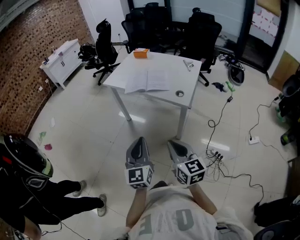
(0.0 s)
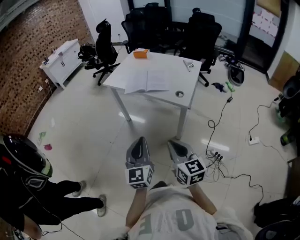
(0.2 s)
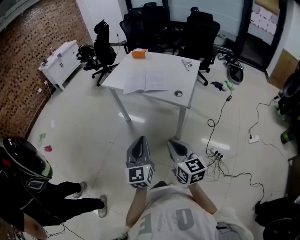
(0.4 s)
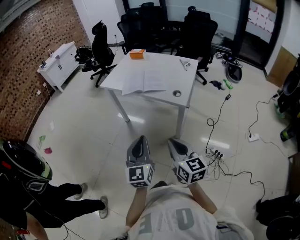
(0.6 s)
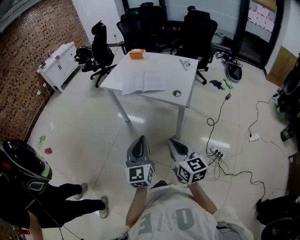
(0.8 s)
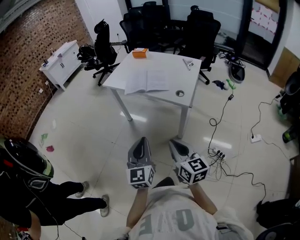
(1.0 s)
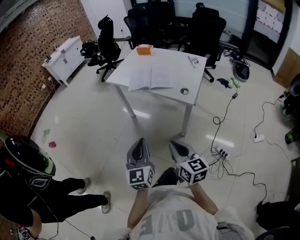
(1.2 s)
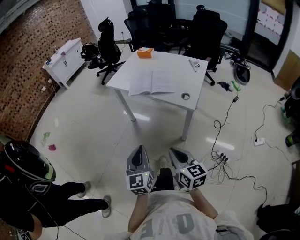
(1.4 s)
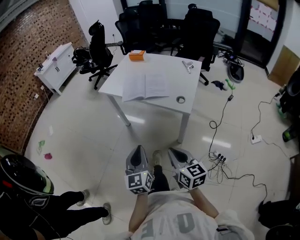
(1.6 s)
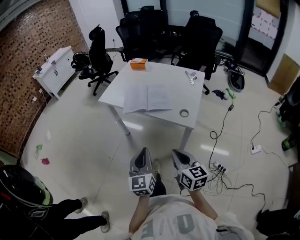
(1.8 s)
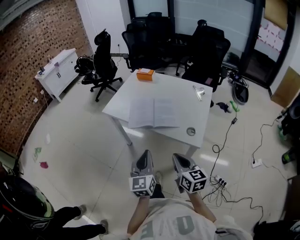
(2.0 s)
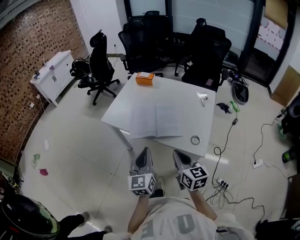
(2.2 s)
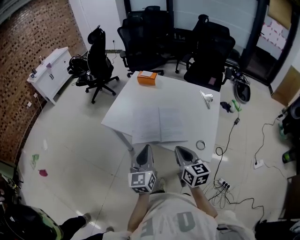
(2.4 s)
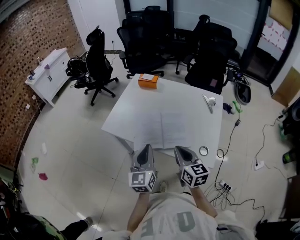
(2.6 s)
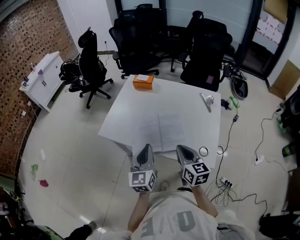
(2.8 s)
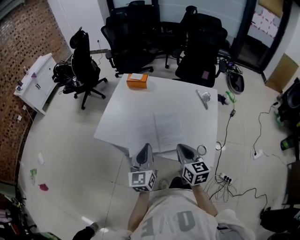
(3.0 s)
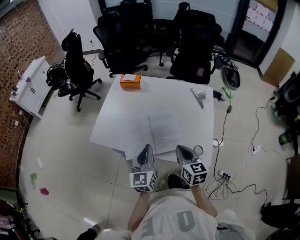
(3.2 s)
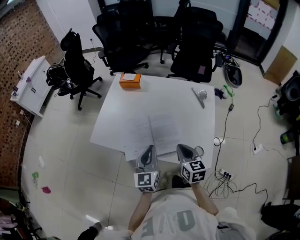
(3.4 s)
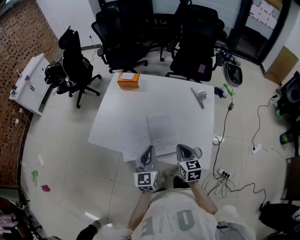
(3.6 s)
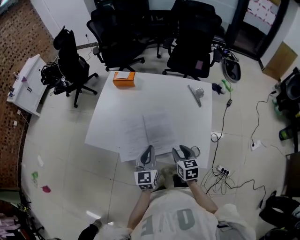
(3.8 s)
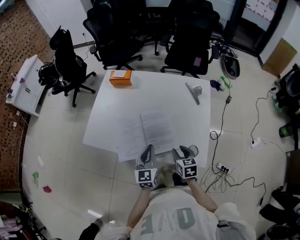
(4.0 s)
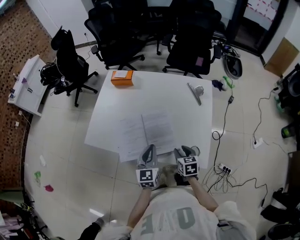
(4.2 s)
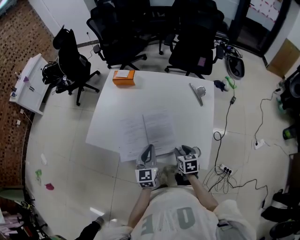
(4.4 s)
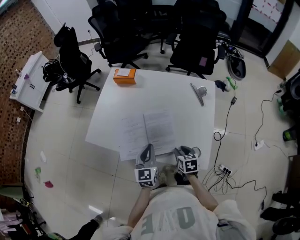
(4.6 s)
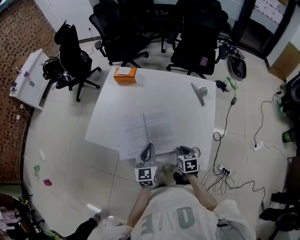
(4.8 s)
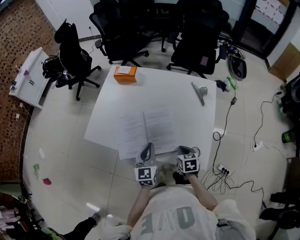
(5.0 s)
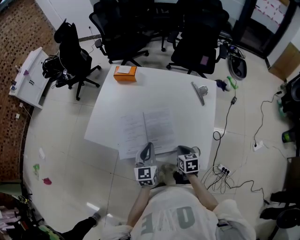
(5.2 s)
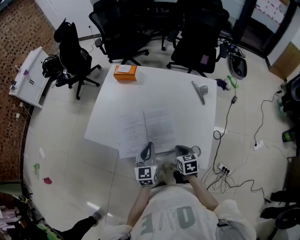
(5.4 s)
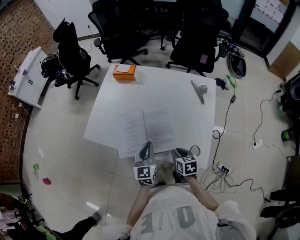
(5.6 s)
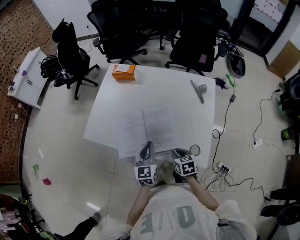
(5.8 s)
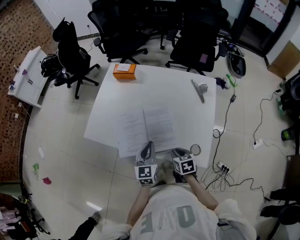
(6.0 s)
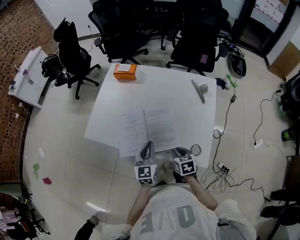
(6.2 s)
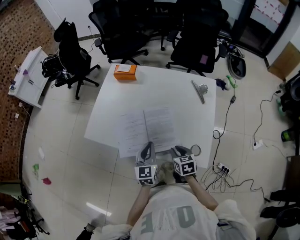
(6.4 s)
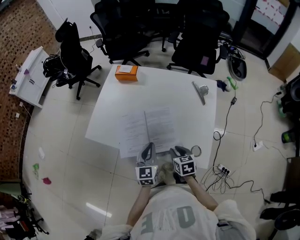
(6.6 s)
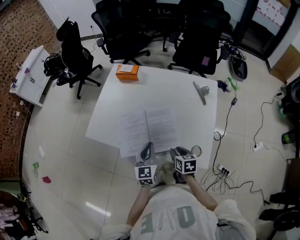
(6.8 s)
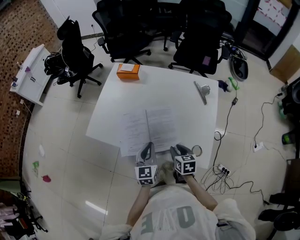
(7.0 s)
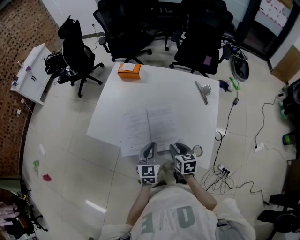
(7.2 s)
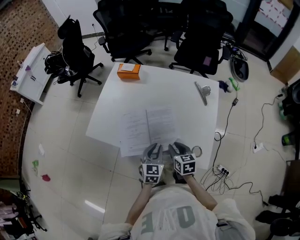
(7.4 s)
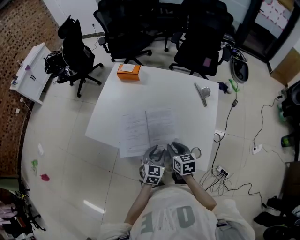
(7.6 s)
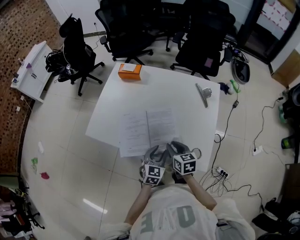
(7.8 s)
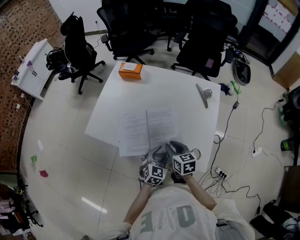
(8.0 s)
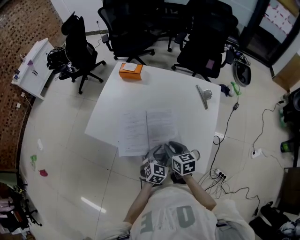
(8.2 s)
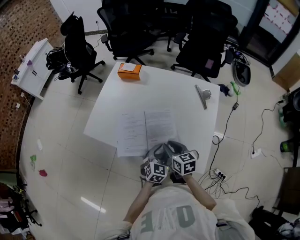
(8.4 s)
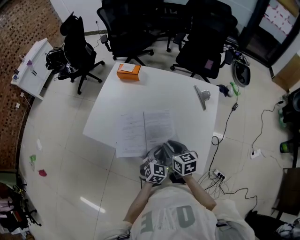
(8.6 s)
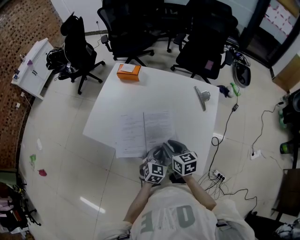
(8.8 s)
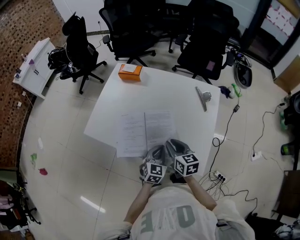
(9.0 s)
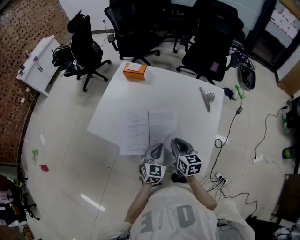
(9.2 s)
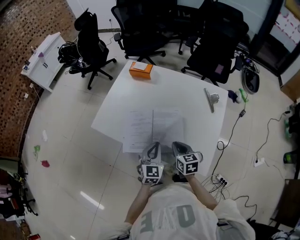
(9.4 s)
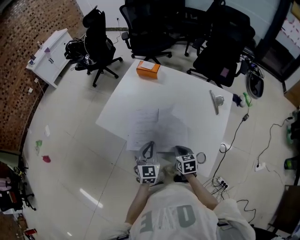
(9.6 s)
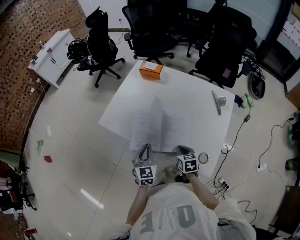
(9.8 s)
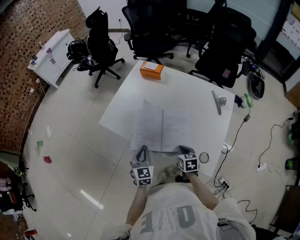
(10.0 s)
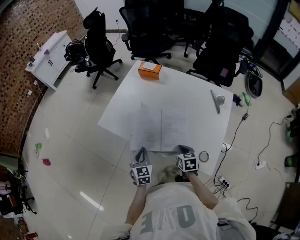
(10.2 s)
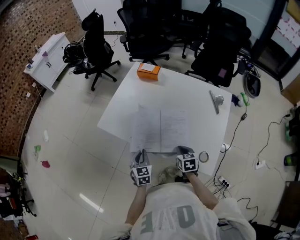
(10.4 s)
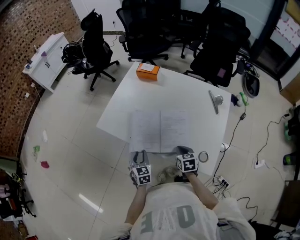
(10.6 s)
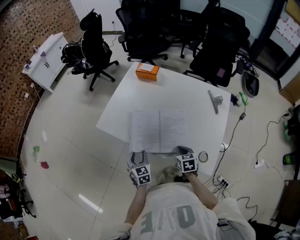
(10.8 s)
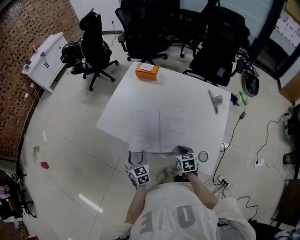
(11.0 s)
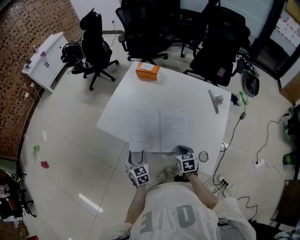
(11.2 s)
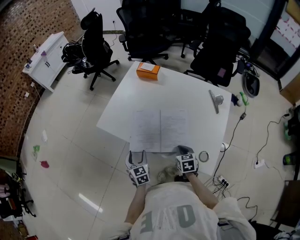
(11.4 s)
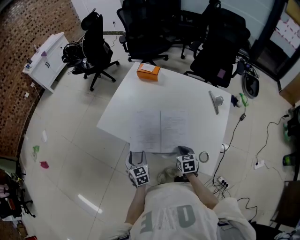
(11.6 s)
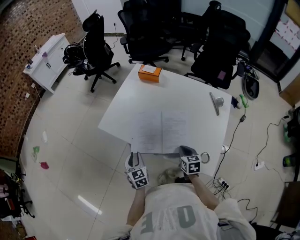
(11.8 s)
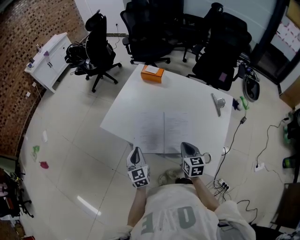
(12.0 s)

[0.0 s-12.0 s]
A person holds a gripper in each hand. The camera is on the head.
0.0 to 1.6 s: The grippers both shift forward by about 5 cm.
1.6 to 3.0 s: Both grippers move forward, about 40 cm.
3.0 to 4.4 s: The right gripper goes about 20 cm downward and to the right, changes its angle by some 30 degrees, and opens up, while the left gripper goes roughly 10 cm downward and to the right.
4.4 to 6.0 s: The right gripper closes and opens again.
6.0 to 7.6 s: The left gripper moves downward, approximately 5 cm, and opens its fingers; the right gripper shifts roughly 5 cm upward.
7.6 to 9.0 s: The left gripper closes, while the right gripper shifts by some 5 cm.
9.0 to 10.4 s: The right gripper goes about 10 cm downward, rotates some 20 degrees, and closes up, while the left gripper is displaced to the left by about 20 cm, and swivels about 30 degrees.
10.4 to 12.0 s: The grippers both shift upward by approximately 5 cm. The left gripper opens, then closes once more.

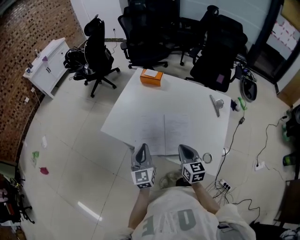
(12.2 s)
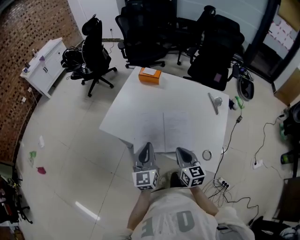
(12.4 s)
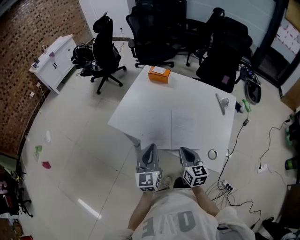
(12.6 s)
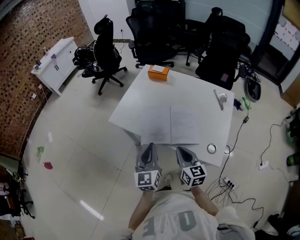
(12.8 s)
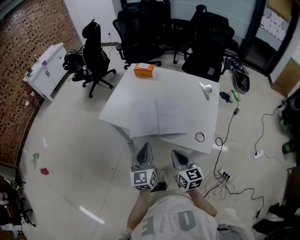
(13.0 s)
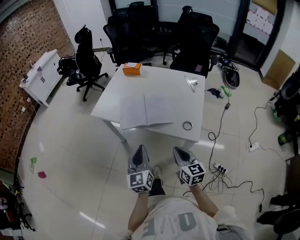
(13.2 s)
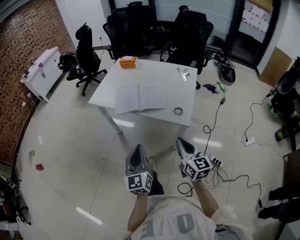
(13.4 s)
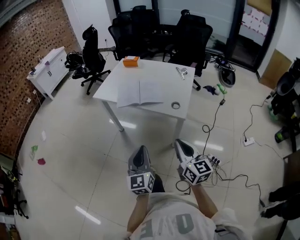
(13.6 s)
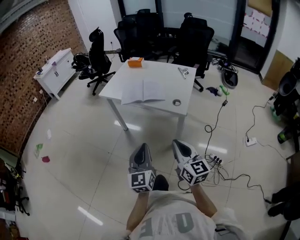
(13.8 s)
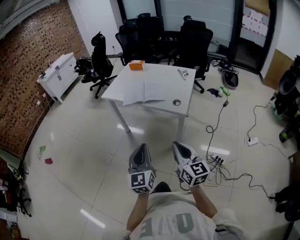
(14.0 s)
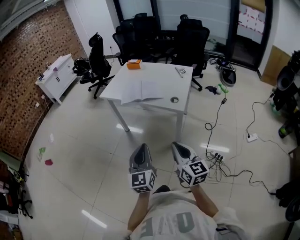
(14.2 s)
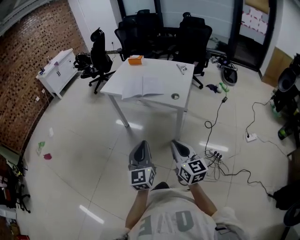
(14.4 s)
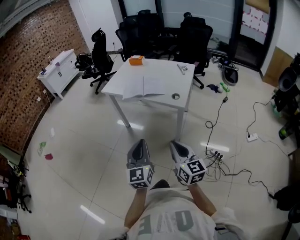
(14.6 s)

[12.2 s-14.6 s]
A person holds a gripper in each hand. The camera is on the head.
12.2 to 13.4 s: The two grippers go some 30 cm backward.
13.4 to 14.6 s: The two grippers go some 20 cm backward.

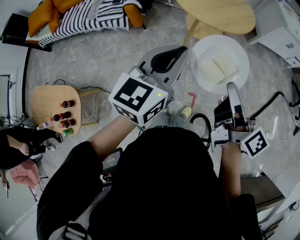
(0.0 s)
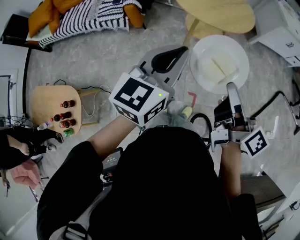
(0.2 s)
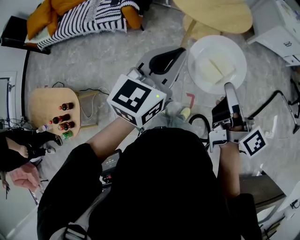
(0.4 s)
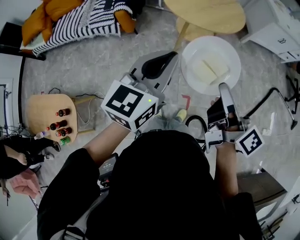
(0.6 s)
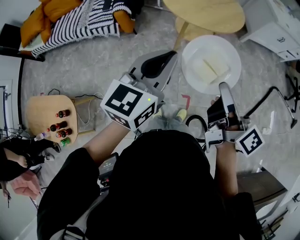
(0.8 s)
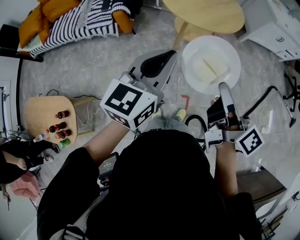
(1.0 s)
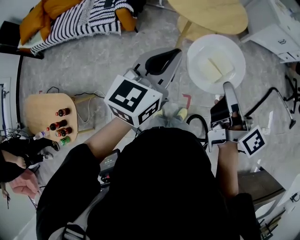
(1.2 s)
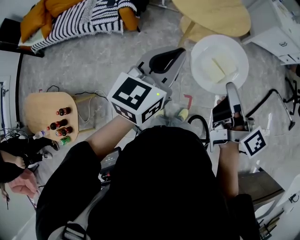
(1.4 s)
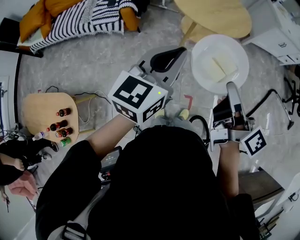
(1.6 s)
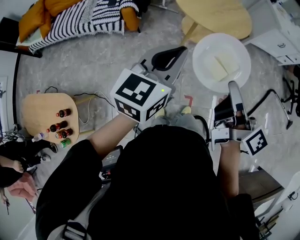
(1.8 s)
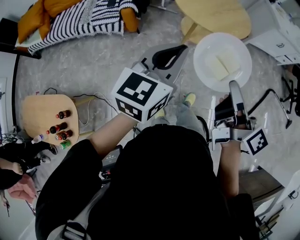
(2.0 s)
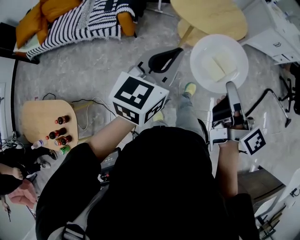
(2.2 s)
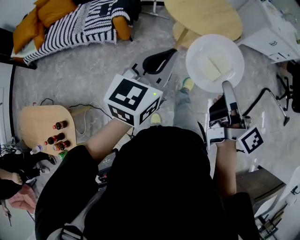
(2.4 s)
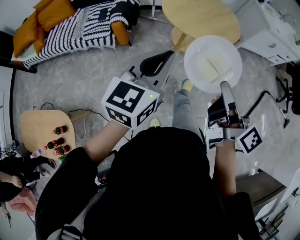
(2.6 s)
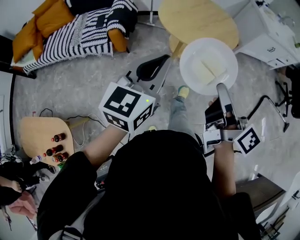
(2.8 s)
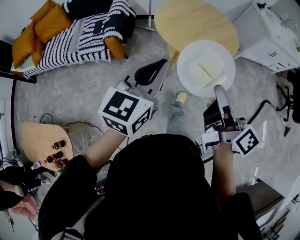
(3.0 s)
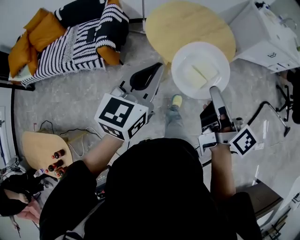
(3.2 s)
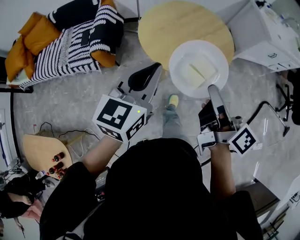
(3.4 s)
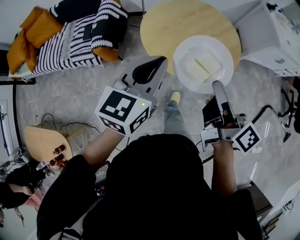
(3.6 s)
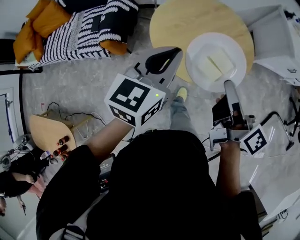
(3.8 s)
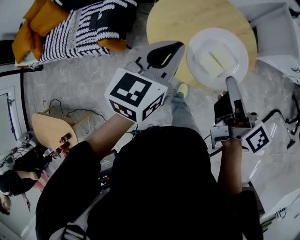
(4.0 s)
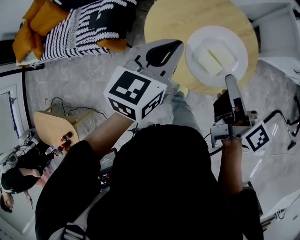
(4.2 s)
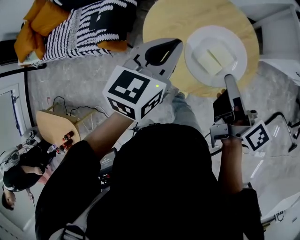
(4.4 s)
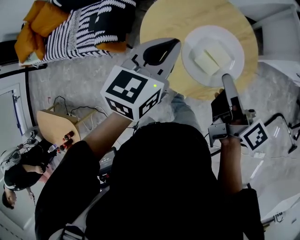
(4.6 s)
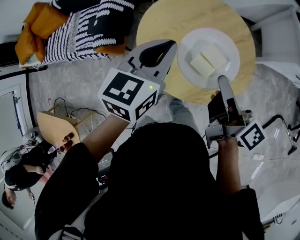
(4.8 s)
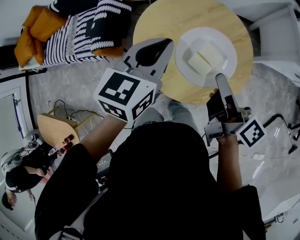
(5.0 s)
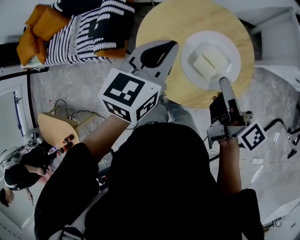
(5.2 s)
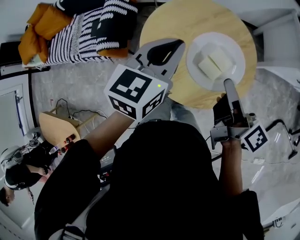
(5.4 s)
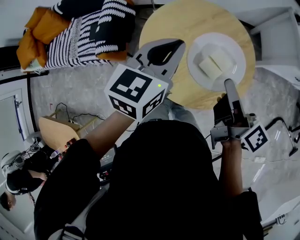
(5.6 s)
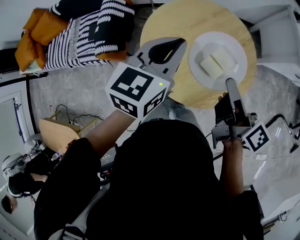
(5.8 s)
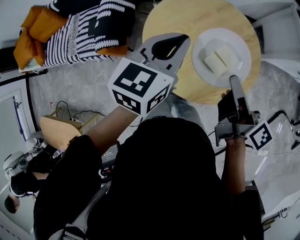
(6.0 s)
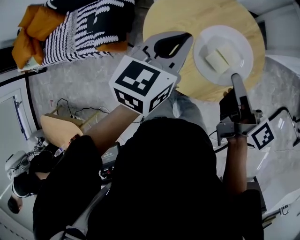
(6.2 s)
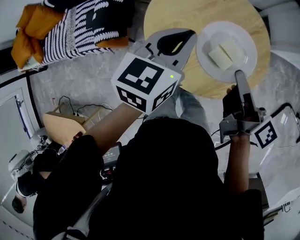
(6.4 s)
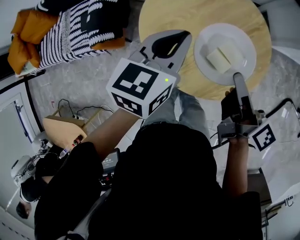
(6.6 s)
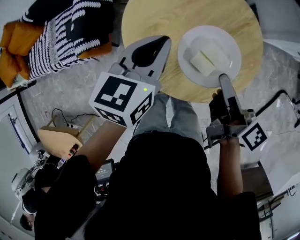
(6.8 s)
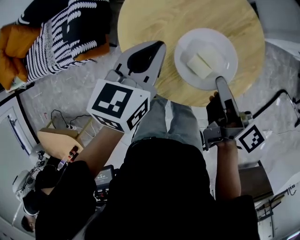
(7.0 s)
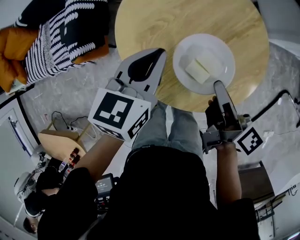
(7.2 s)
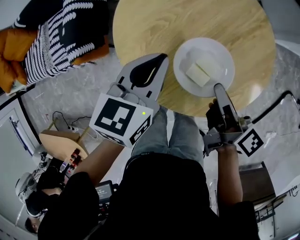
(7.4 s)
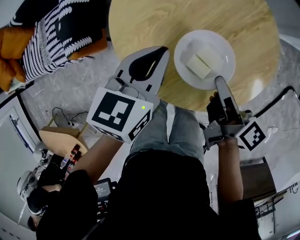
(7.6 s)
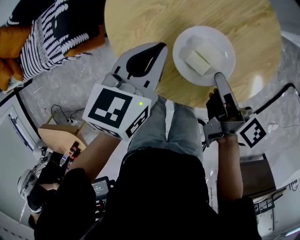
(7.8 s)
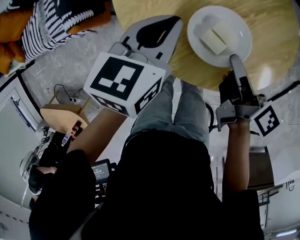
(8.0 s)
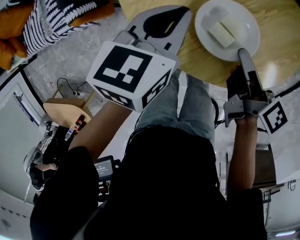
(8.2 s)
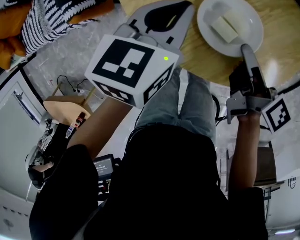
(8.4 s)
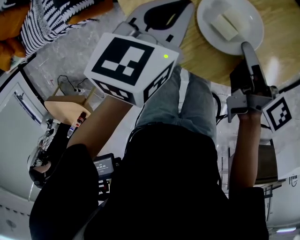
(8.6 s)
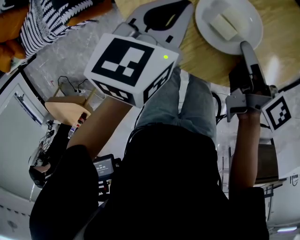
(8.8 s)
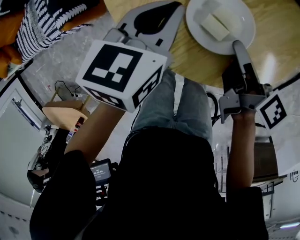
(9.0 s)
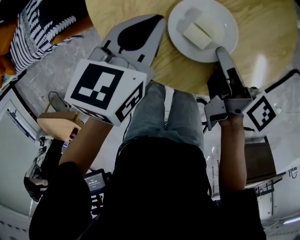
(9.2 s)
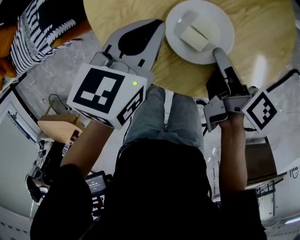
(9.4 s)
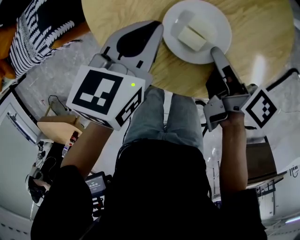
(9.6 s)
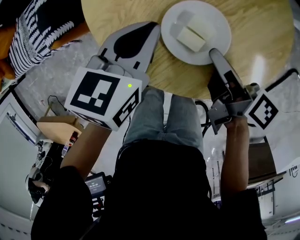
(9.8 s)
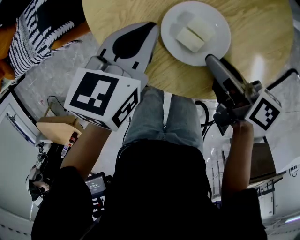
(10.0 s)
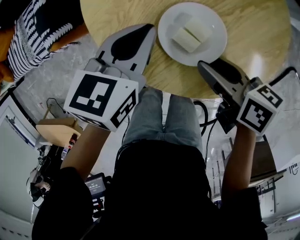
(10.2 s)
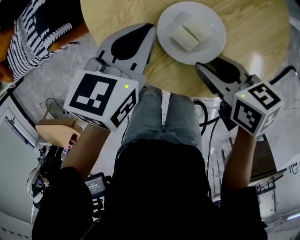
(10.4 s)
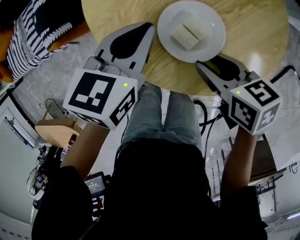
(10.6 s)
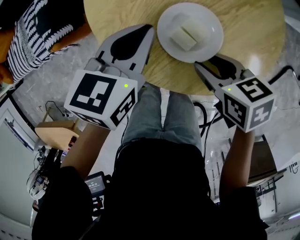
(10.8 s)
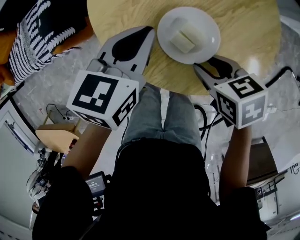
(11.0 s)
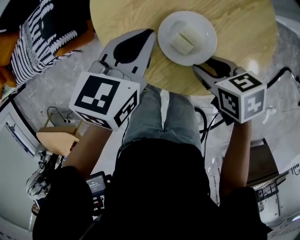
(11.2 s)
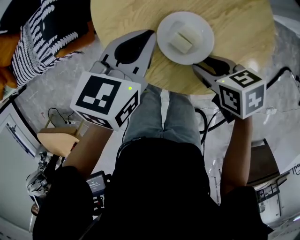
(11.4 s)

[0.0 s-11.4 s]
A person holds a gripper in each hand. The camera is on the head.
0.0 to 1.4 s: The grippers move only a little.
1.4 to 2.8 s: The grippers both shift forward by roughly 5 cm.
2.8 to 4.2 s: Both grippers travel together forward, about 35 cm.
4.2 to 5.6 s: Both grippers travel together forward, about 10 cm.
5.6 to 7.2 s: Both grippers move downward, some 10 cm.
7.2 to 8.6 s: The grippers stay close to where they were, moving slightly.
8.6 to 10.0 s: The right gripper changes its angle by roughly 20 degrees, and opens.
10.0 to 11.4 s: The right gripper moves roughly 5 cm, and angles its fingers downward, by roughly 30 degrees.
